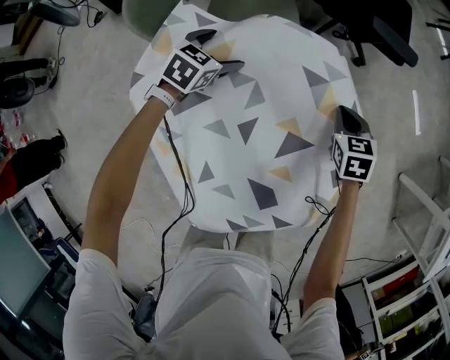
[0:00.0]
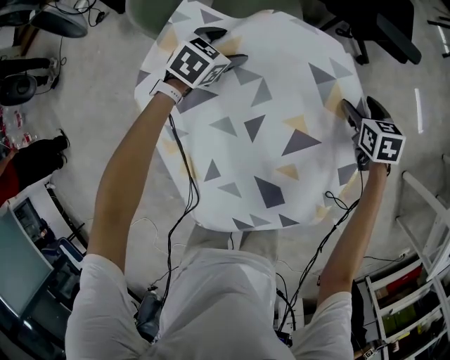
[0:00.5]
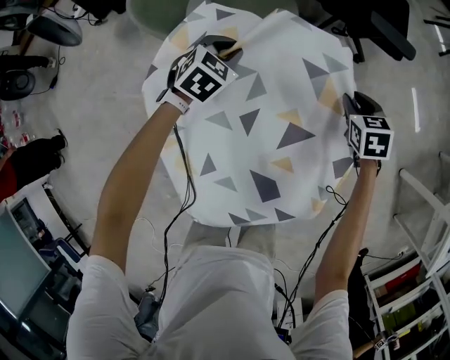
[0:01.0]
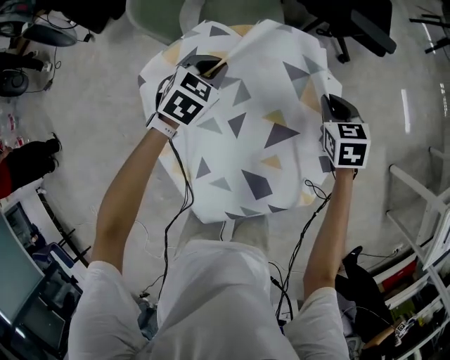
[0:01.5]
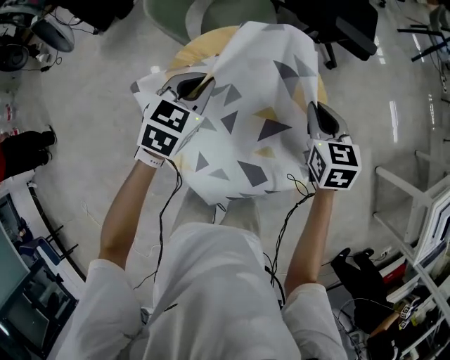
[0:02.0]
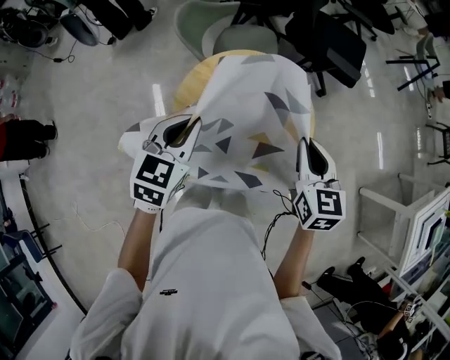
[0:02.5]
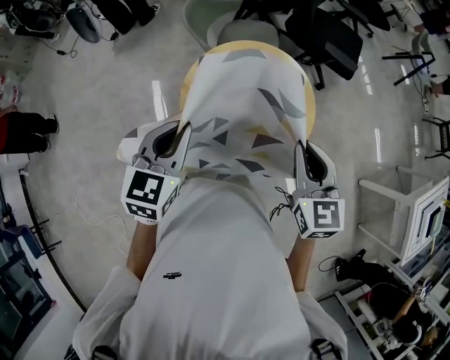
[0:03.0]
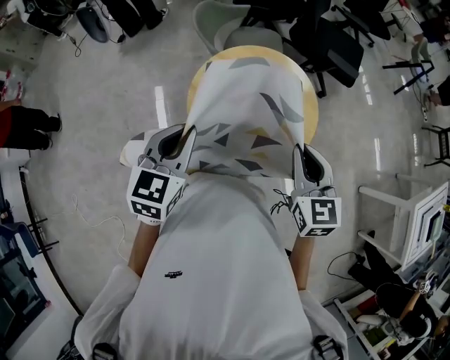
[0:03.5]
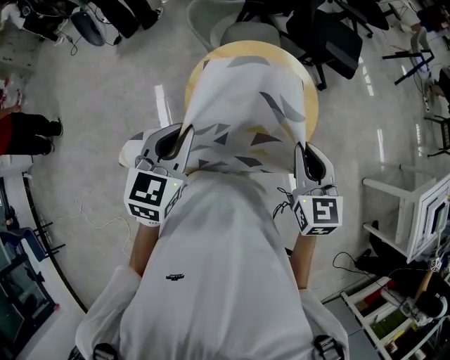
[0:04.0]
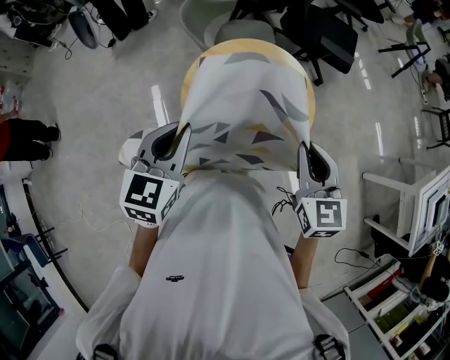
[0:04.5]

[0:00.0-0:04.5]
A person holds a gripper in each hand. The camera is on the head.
0.0 to 2.0 s: Both grippers move upward and backward, some 25 cm. The right gripper opens and closes again. Meanwhile the left gripper closes up.
2.0 to 4.5 s: Both grippers move backward and upward, roughly 30 cm. The left gripper rotates approximately 20 degrees.

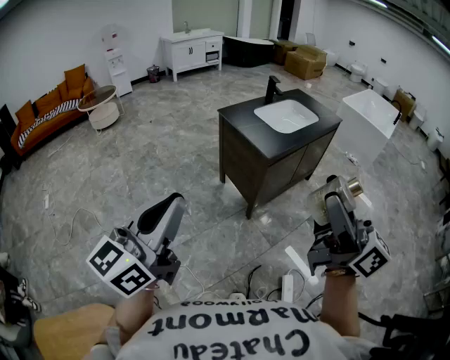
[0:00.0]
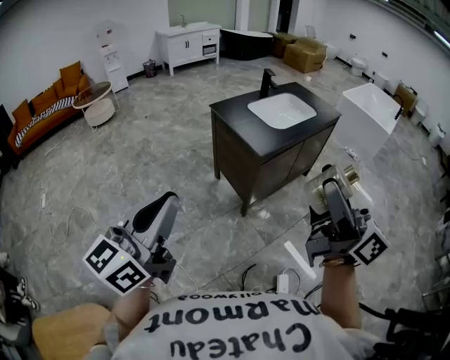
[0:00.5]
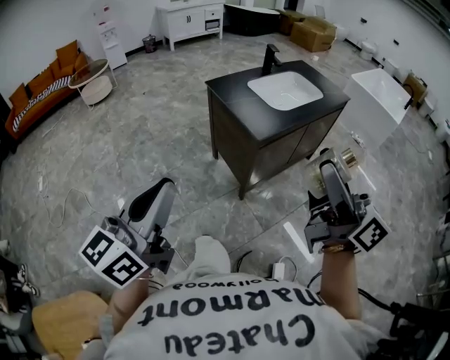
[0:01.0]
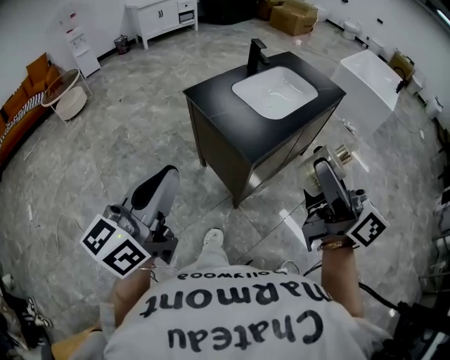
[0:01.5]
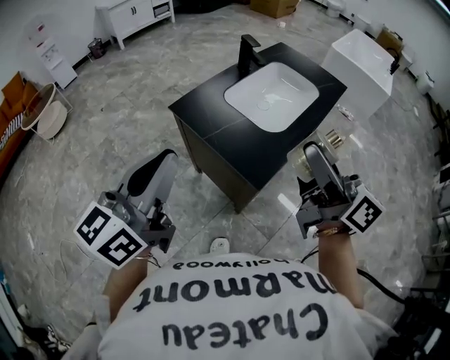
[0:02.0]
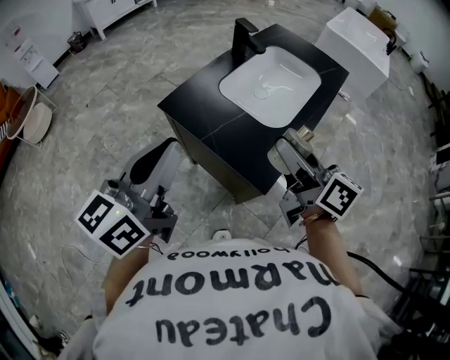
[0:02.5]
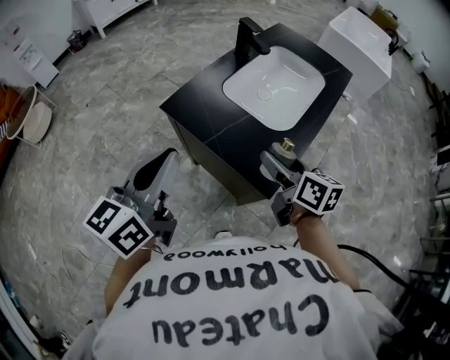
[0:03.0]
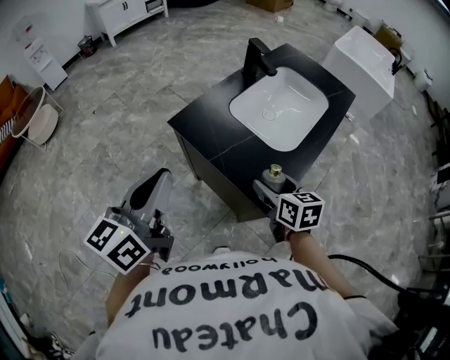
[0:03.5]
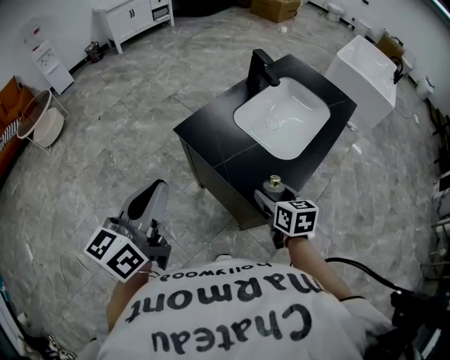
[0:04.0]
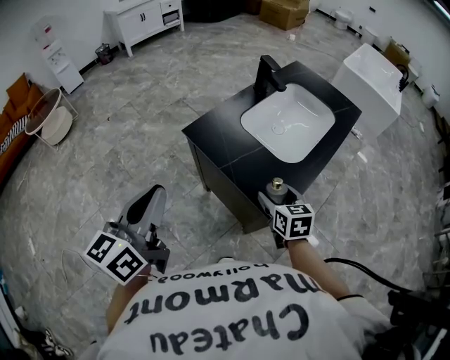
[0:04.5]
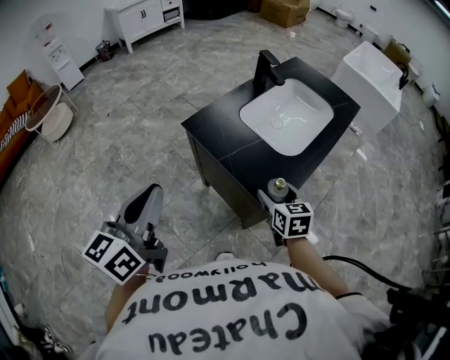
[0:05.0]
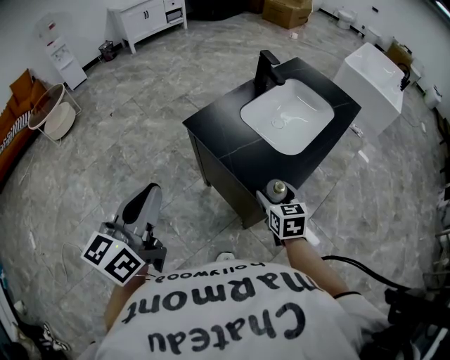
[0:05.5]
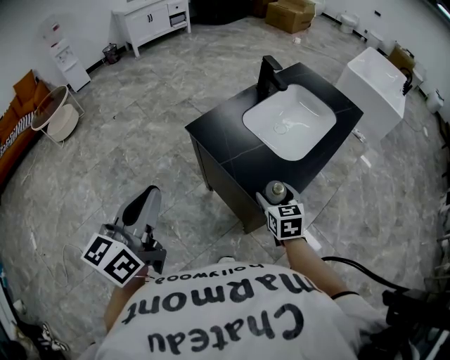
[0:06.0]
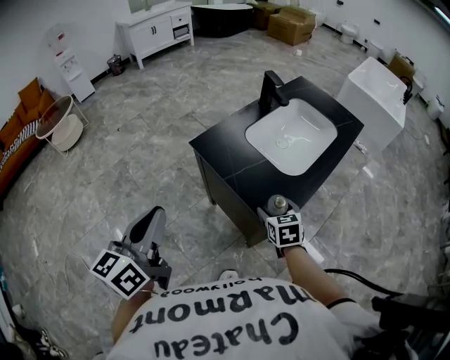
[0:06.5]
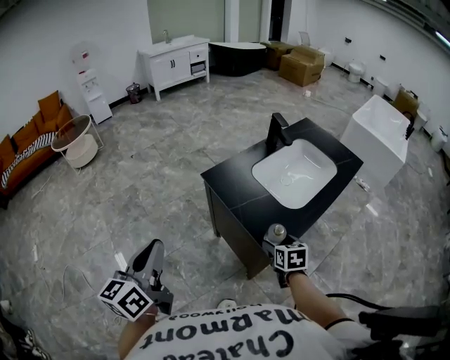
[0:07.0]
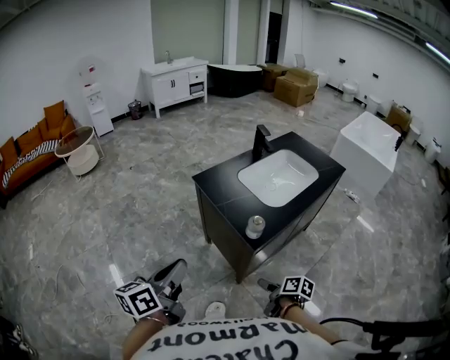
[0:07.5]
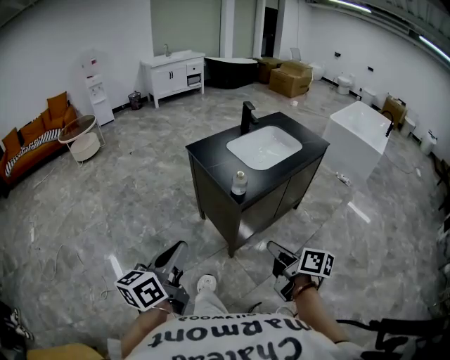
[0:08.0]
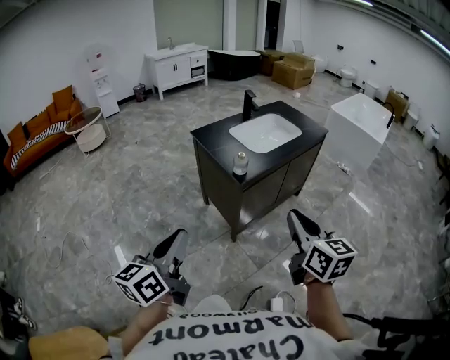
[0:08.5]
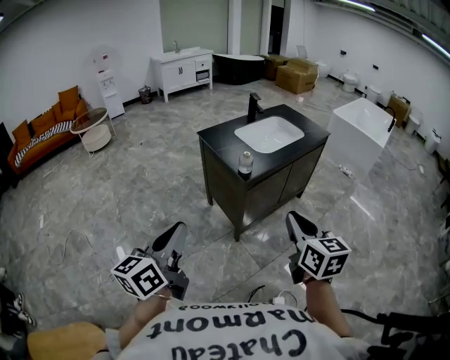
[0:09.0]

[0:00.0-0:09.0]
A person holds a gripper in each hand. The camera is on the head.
0.0 to 2.0 s: The pair of grippers is taken forward, about 50 cm.
2.0 to 4.5 s: The right gripper is displaced downward by about 30 cm, and points its fingers some 50 degrees further downward; the left gripper goes about 15 cm to the left, downward and forward.
4.5 to 7.0 s: The left gripper heads backward, covering some 10 cm.
7.0 to 9.0 s: The left gripper travels backward by approximately 35 cm; the right gripper goes approximately 50 cm backward and upward, tips its fingers upward by approximately 30 degrees, and closes.

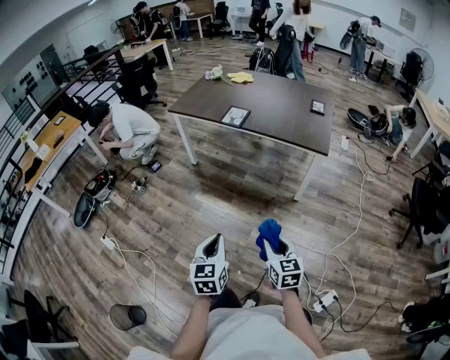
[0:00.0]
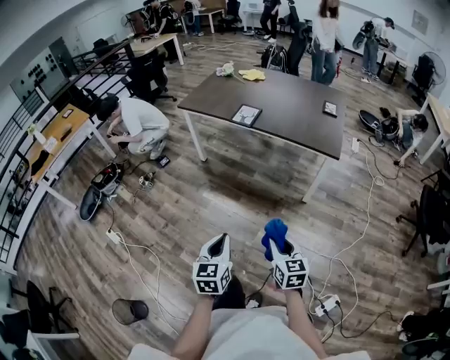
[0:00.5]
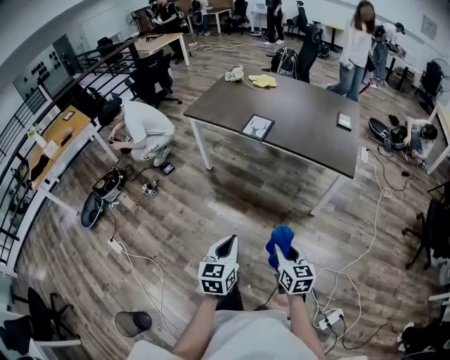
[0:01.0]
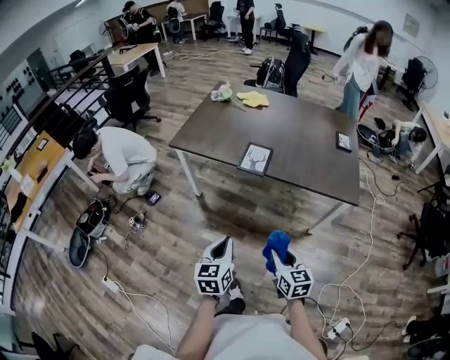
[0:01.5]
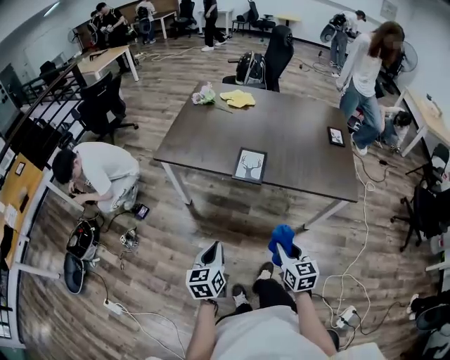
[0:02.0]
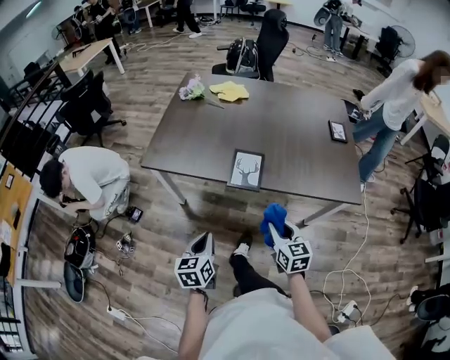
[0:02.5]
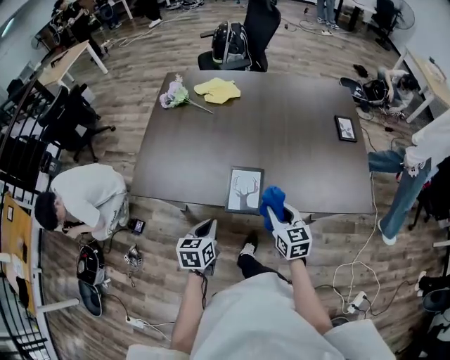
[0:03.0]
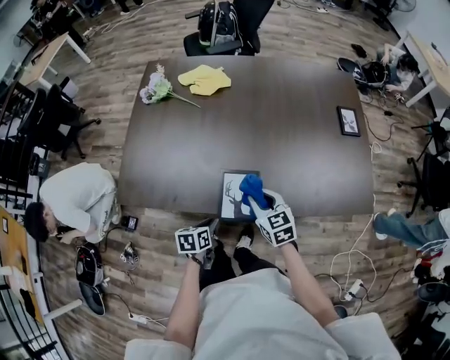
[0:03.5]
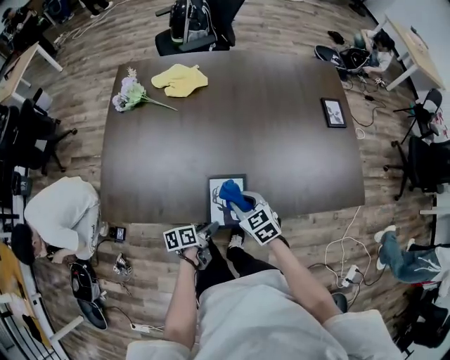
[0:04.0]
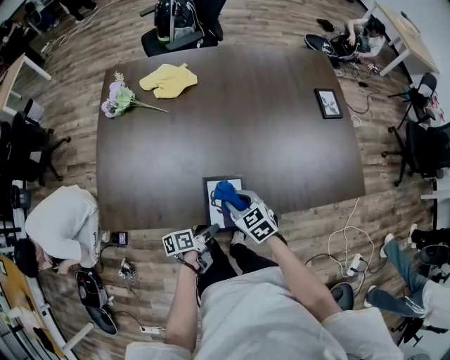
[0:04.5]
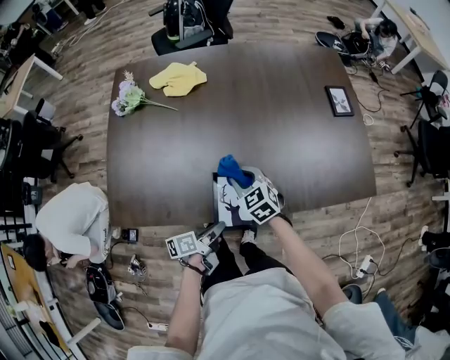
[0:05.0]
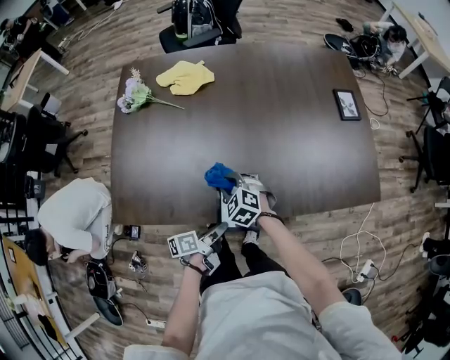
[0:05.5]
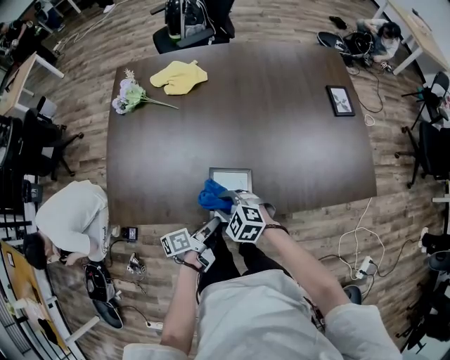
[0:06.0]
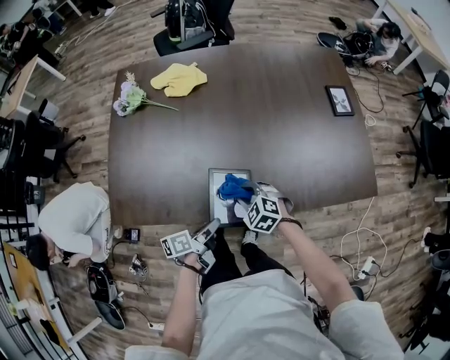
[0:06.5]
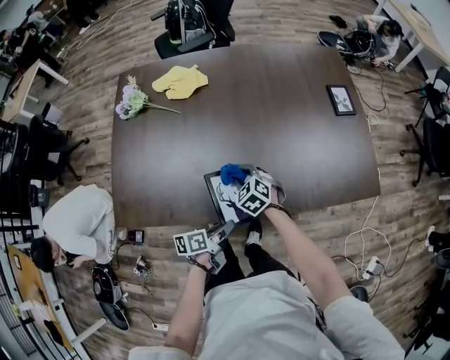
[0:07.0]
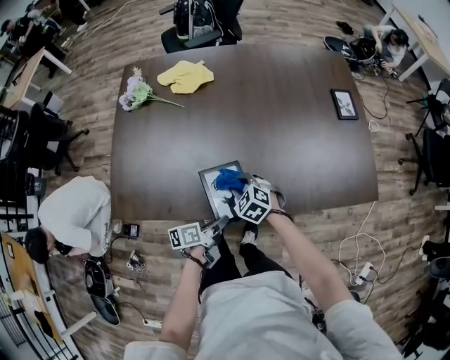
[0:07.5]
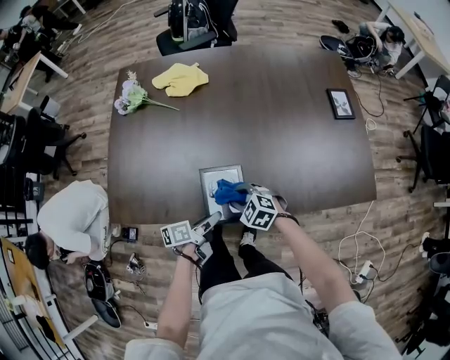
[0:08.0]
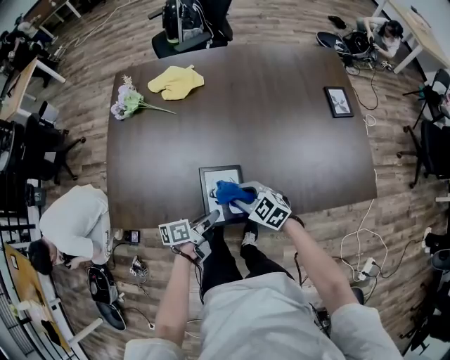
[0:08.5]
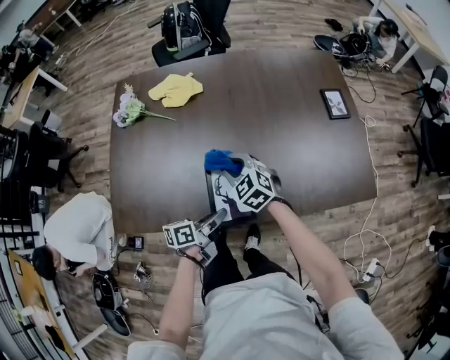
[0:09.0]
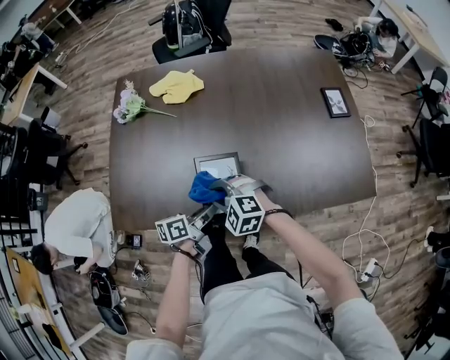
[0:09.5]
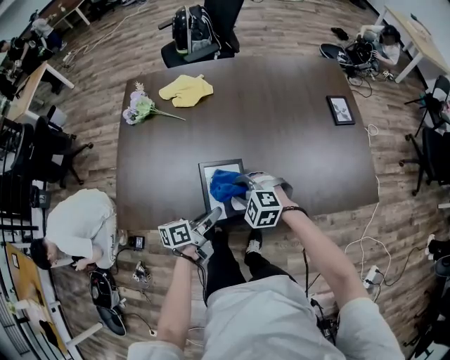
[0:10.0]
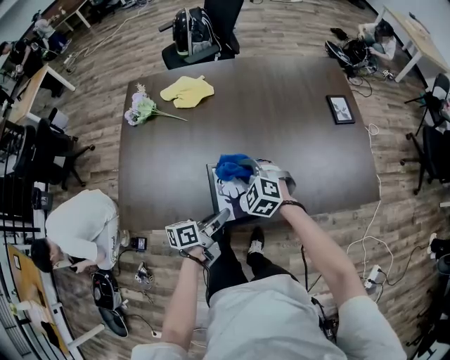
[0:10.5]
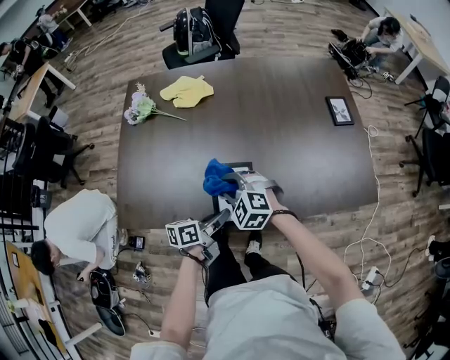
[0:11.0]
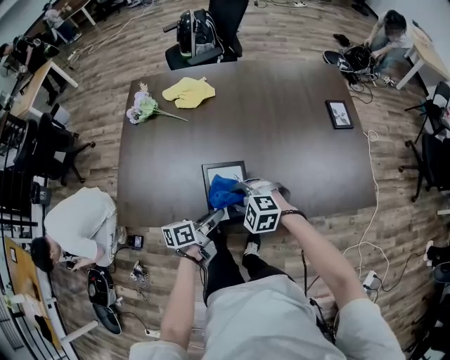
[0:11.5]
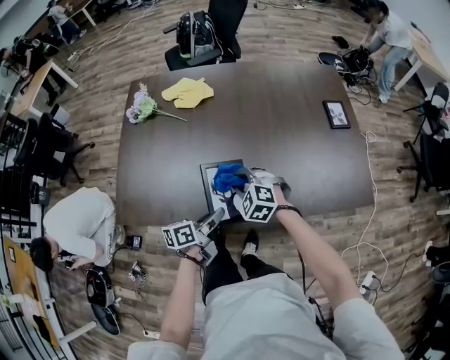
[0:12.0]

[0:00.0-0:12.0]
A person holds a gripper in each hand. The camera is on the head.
0.0 to 2.0 s: The two grippers travel together, forward, some 50 cm.
2.0 to 4.0 s: The left gripper shifts some 50 cm forward and downward, changes its angle by approximately 60 degrees, and opens its fingers; the right gripper travels forward by roughly 40 cm, and changes its angle by about 20 degrees.
4.0 to 6.0 s: The left gripper moves upward, roughly 5 cm, and closes its fingers. Meanwhile the right gripper travels to the left by some 10 cm, reaches roughly 5 cm forward, then returns, and swivels roughly 30 degrees.
6.0 to 8.0 s: The right gripper travels to the right by some 5 cm, and goes forward and returns, some 10 cm each way.
8.0 to 10.0 s: The grippers both shift upward by some 10 cm. The right gripper goes forward and returns, roughly 10 cm each way, and changes its angle by roughly 20 degrees; the left gripper closes up.
10.0 to 12.0 s: The right gripper swings forward and backward, some 10 cm each way, with 2 reversals.

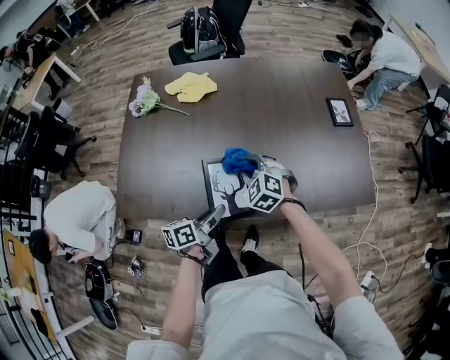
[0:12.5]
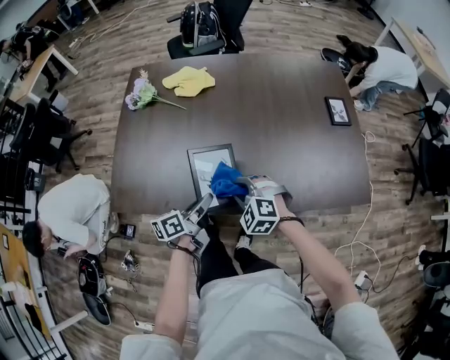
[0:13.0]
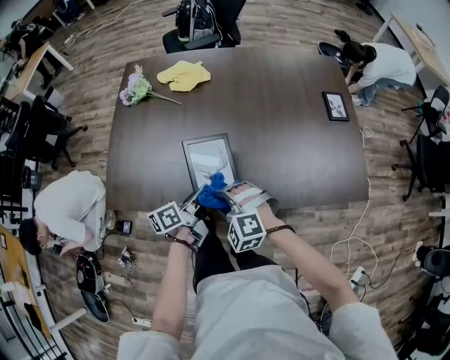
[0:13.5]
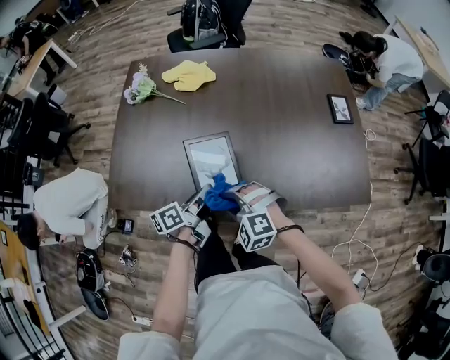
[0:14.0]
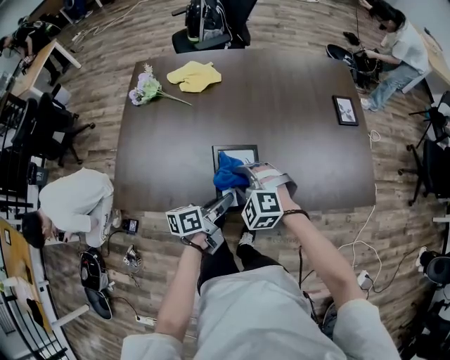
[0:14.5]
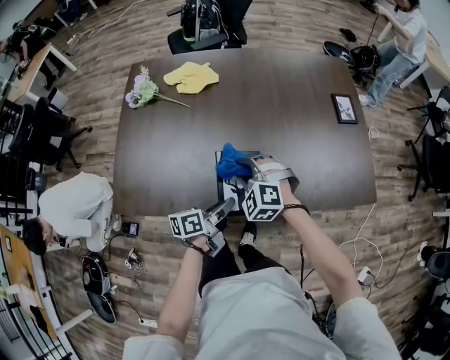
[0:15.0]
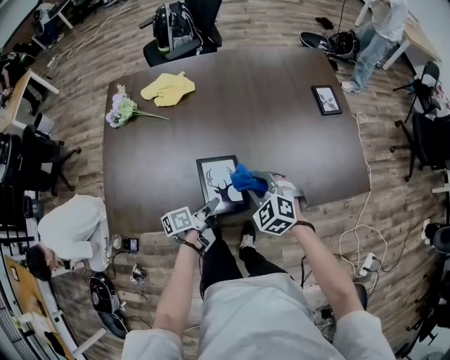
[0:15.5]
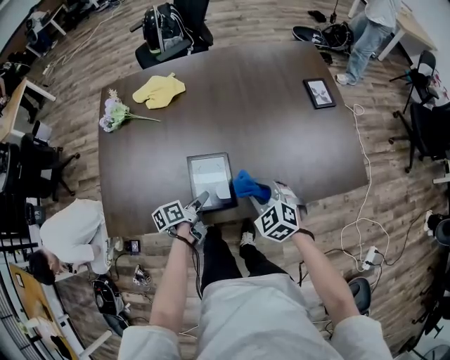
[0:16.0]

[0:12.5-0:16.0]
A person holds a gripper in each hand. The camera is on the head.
12.5 to 14.5 s: The right gripper moves backward, some 5 cm.
14.5 to 16.0 s: The right gripper travels to the right by about 15 cm, and rotates roughly 40 degrees; the left gripper heads downward, covering approximately 10 cm, and opens up.
